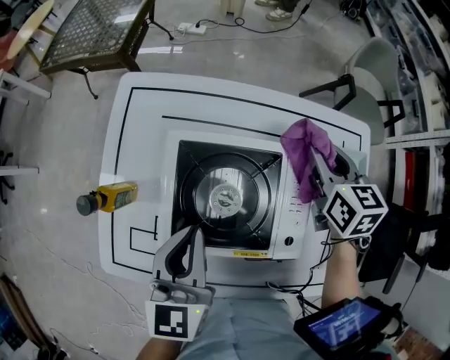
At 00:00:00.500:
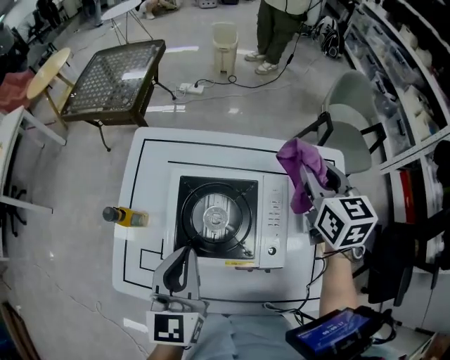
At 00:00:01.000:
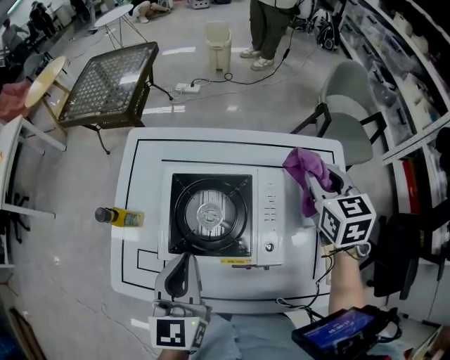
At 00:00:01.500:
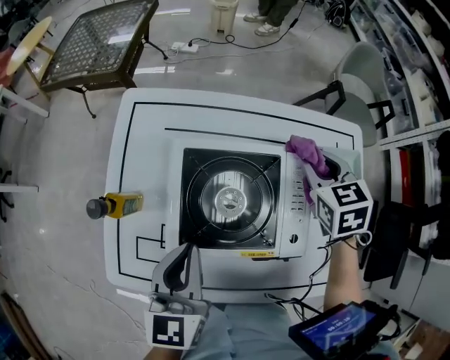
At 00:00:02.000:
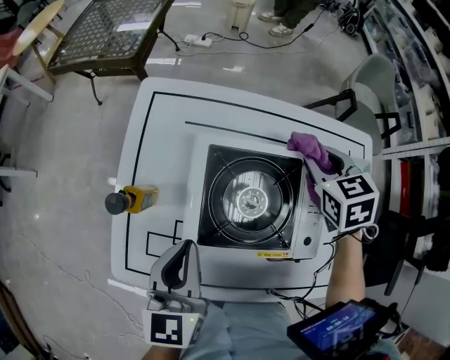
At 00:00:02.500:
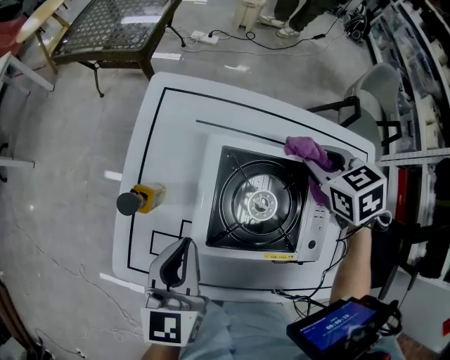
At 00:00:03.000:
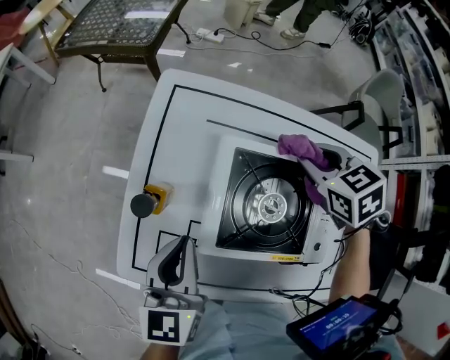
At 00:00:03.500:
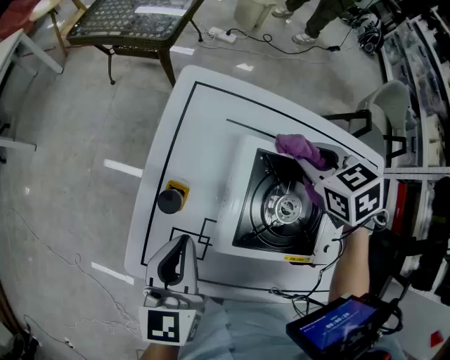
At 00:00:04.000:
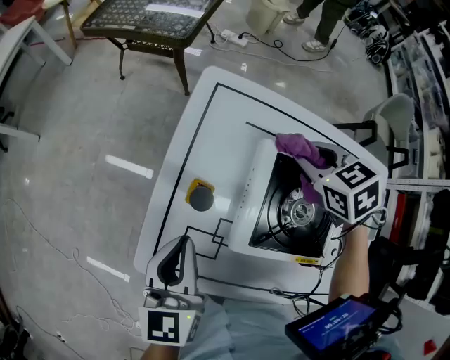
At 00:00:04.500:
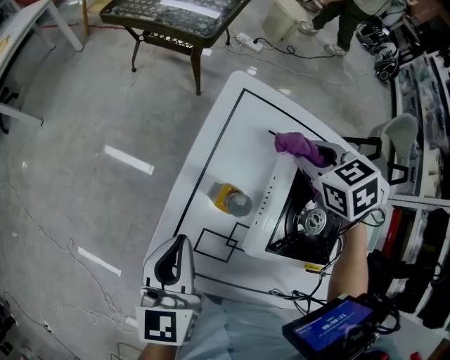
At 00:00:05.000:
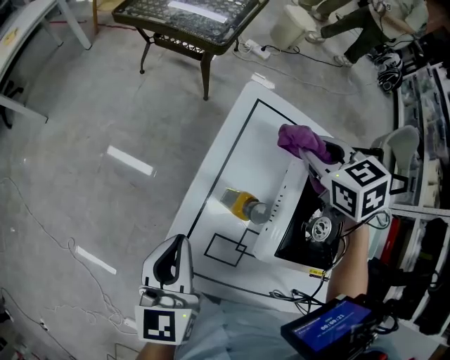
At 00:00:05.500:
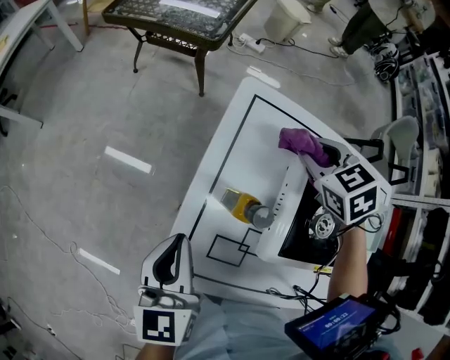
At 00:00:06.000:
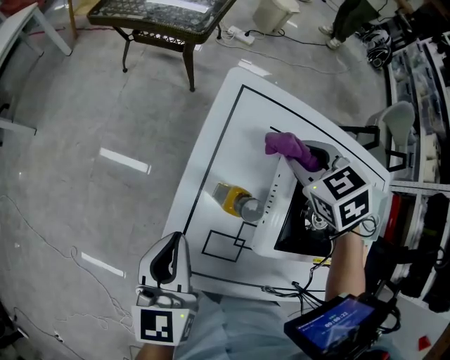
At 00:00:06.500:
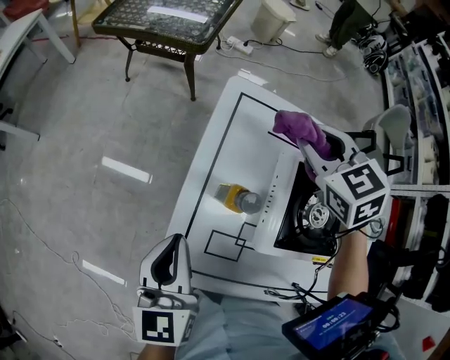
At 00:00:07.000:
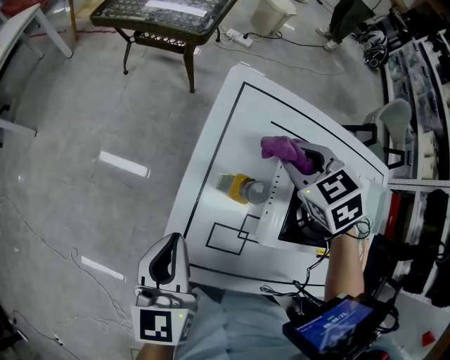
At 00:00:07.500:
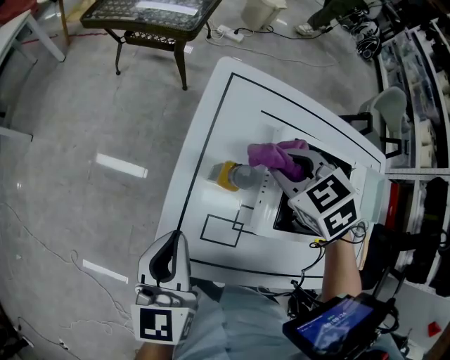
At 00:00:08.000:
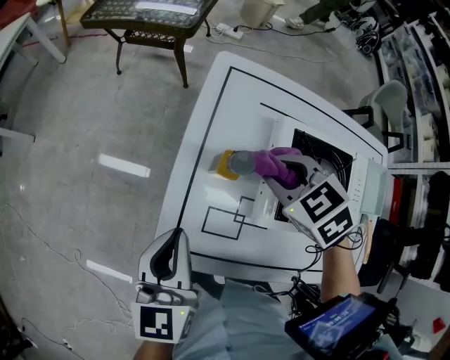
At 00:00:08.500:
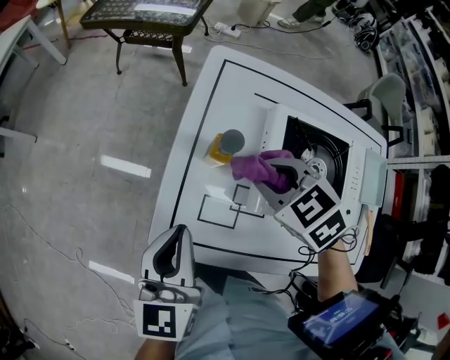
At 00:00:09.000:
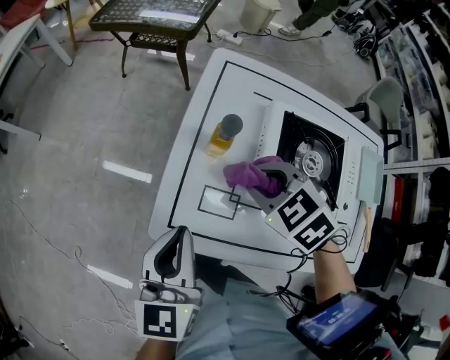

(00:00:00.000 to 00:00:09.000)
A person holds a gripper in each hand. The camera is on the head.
00:00:00.000 - 00:00:02.000: Both grippers move to the left, some 5 cm. The right gripper changes its angle by approximately 20 degrees.
00:00:02.000 - 00:00:04.500: Both grippers move to the left, some 25 cm. The right gripper turns by some 30 degrees.
00:00:04.500 - 00:00:07.000: The right gripper travels to the left by roughly 5 cm, and moves some 5 cm upward and comes back.
00:00:07.000 - 00:00:09.000: The right gripper is displaced backward and to the left by approximately 20 cm. Meanwhile the left gripper goes some 10 cm backward.

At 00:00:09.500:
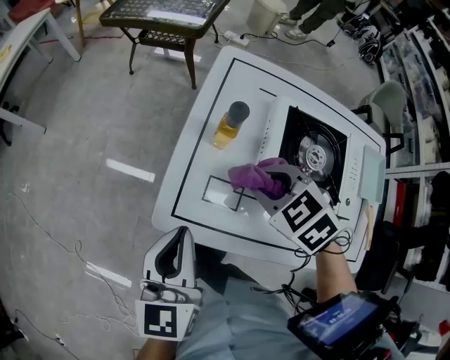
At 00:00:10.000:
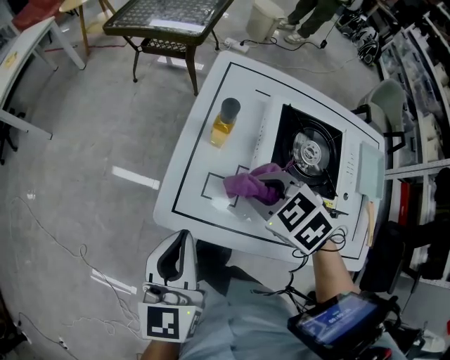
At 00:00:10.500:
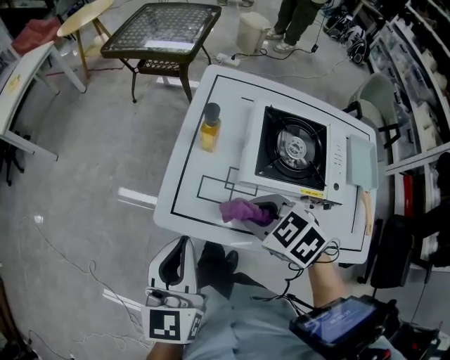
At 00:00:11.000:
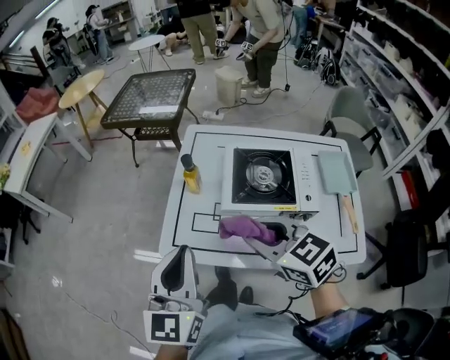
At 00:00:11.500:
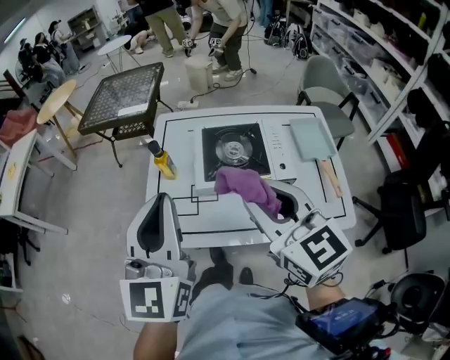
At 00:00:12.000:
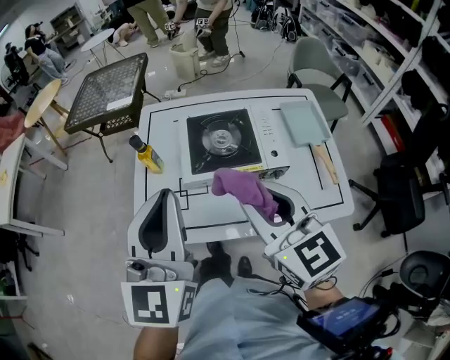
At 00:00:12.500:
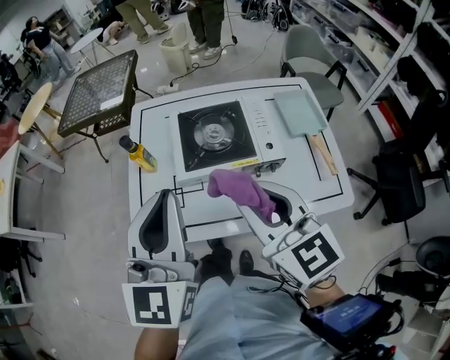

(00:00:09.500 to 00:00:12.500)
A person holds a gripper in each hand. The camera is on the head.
00:00:09.500 - 00:00:11.000: The left gripper moves upward and backward, approximately 20 cm; the right gripper goes some 25 cm backward and upward, and turns by approximately 30 degrees.
00:00:11.000 - 00:00:12.500: Both grippers move to the right, about 10 cm. The right gripper swivels approximately 30 degrees.

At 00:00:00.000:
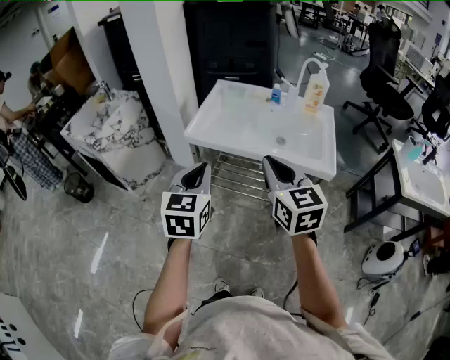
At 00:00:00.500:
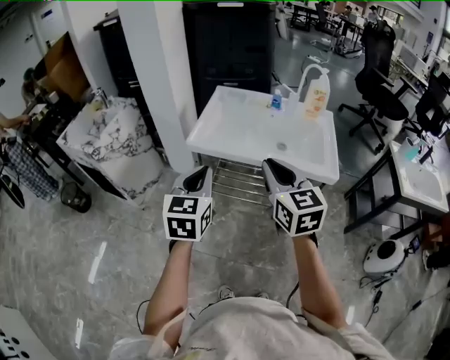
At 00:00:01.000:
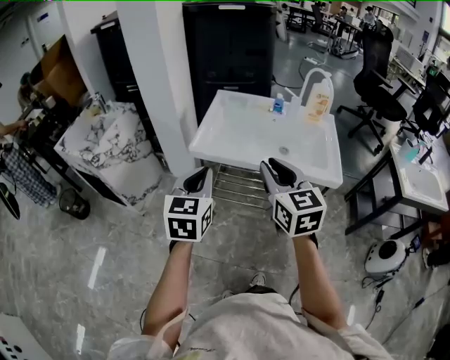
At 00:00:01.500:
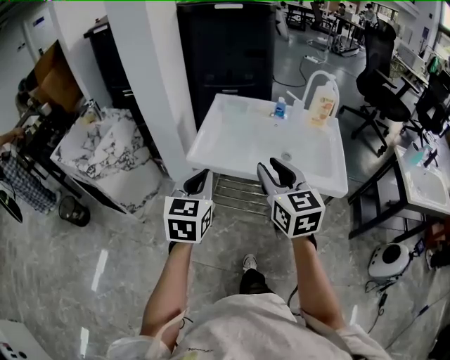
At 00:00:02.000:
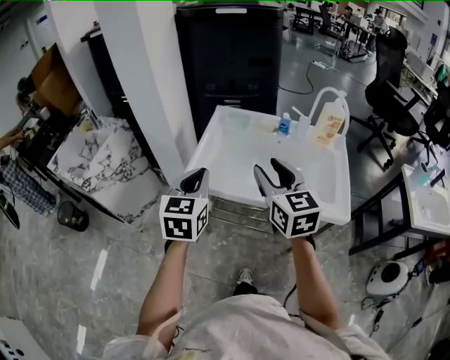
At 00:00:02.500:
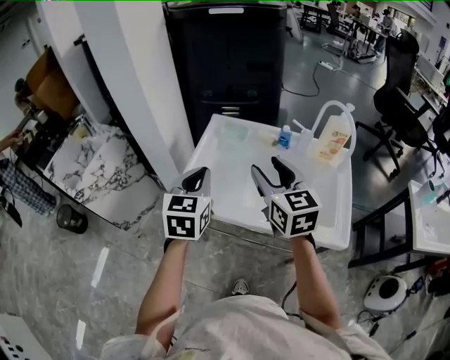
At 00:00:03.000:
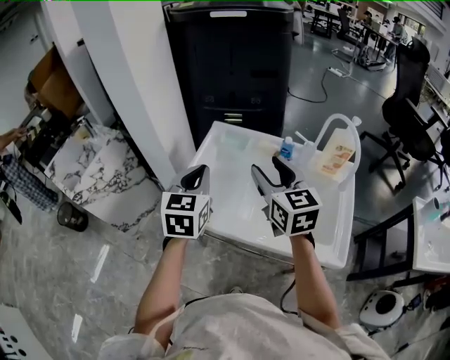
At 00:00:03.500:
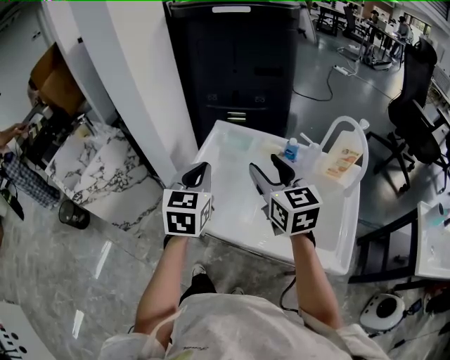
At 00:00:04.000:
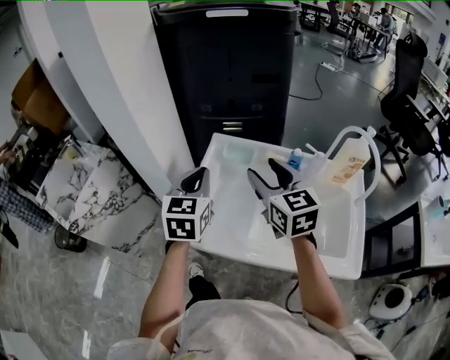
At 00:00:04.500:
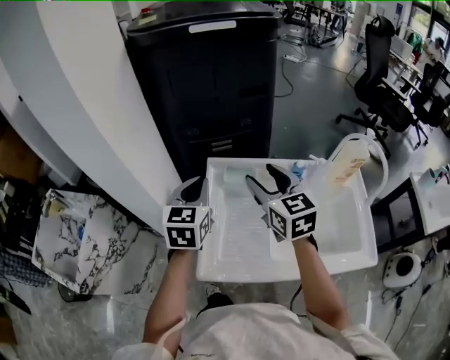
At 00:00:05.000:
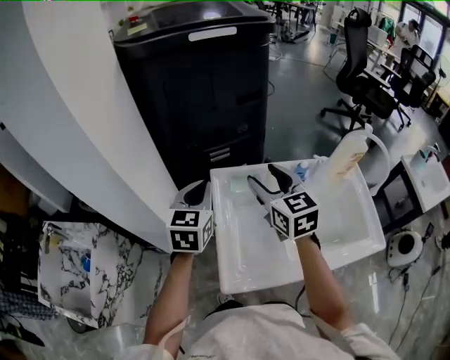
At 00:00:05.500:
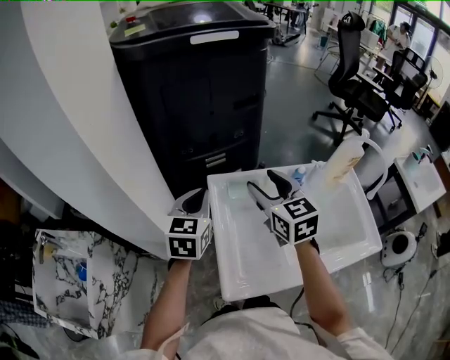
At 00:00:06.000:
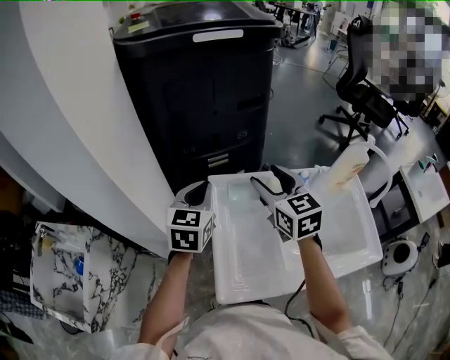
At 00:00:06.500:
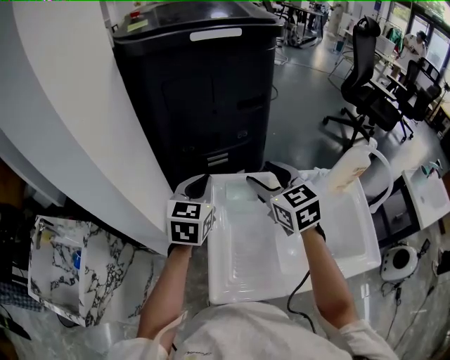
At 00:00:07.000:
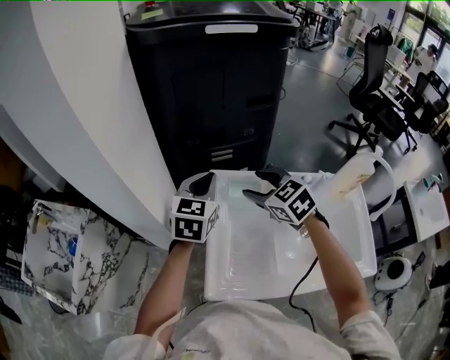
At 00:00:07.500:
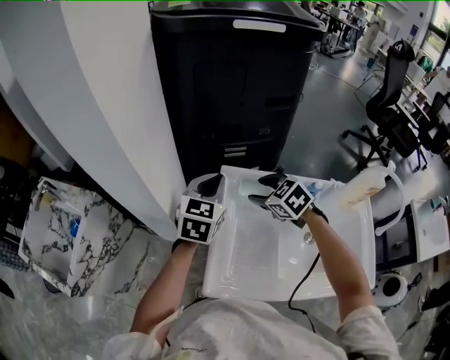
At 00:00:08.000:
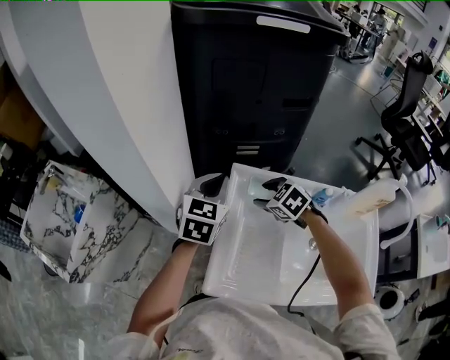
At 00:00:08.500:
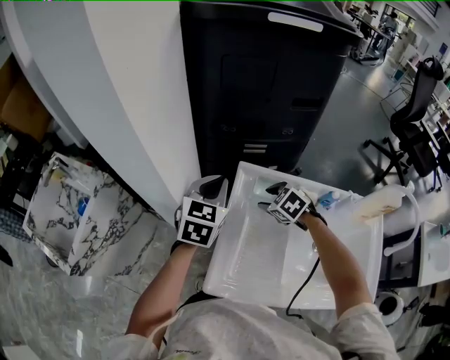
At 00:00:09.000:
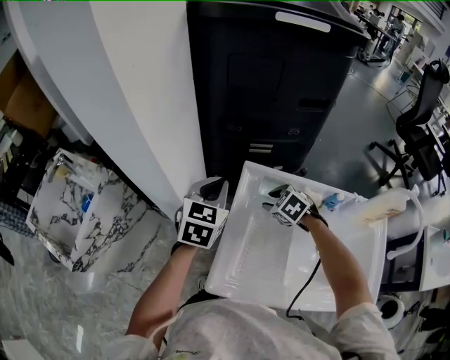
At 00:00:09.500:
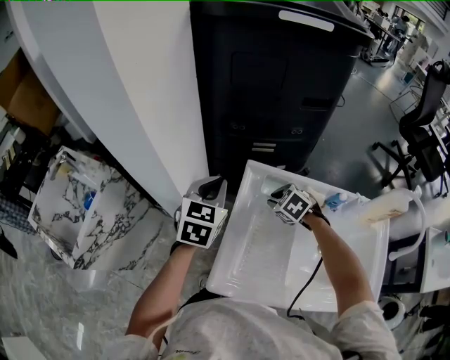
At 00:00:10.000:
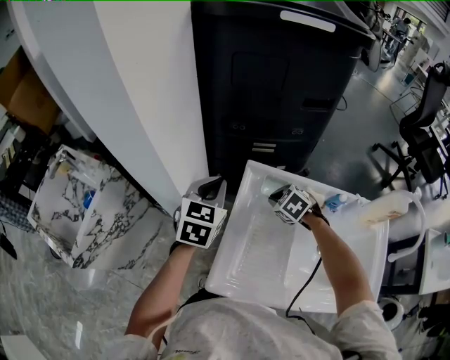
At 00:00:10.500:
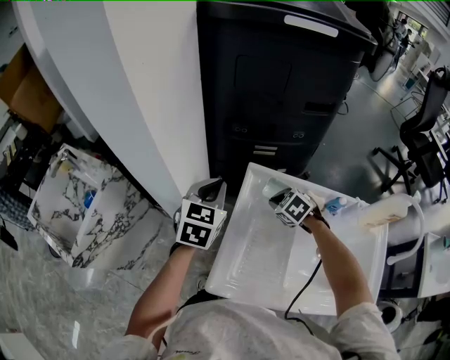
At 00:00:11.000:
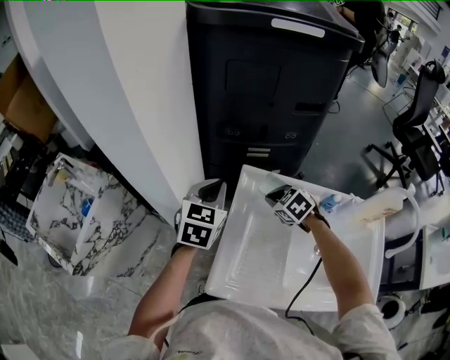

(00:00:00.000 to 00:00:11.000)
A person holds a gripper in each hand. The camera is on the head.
00:00:00.000 - 00:00:02.000: Both grippers move forward, approximately 20 cm. The right gripper opens its fingers.
00:00:02.000 - 00:00:03.500: The left gripper shifts about 15 cm forward and to the right; the right gripper shifts approximately 15 cm forward.
00:00:03.500 - 00:00:05.500: The left gripper moves approximately 25 cm, and changes its angle by approximately 30 degrees; the right gripper moves roughly 20 cm, and turns by approximately 30 degrees.
00:00:05.500 - 00:00:07.500: The right gripper heads downward, covering approximately 15 cm, and tips its fingers downward by approximately 30 degrees.
00:00:07.500 - 00:00:09.000: The left gripper shifts about 5 cm to the left. The right gripper shifts some 10 cm downward.
00:00:09.000 - 00:00:11.000: The right gripper closes.

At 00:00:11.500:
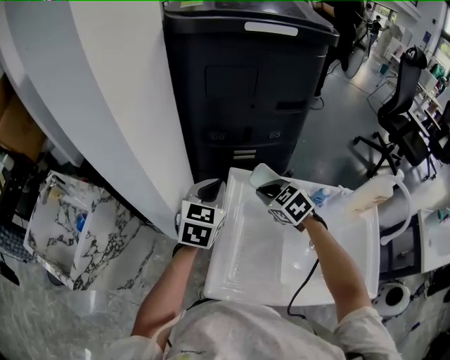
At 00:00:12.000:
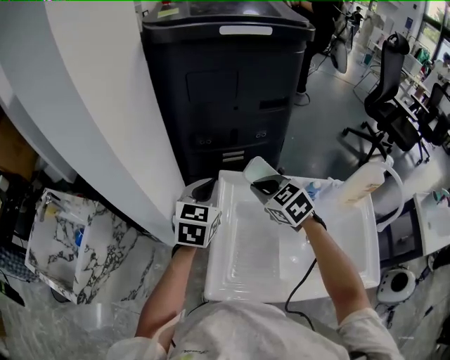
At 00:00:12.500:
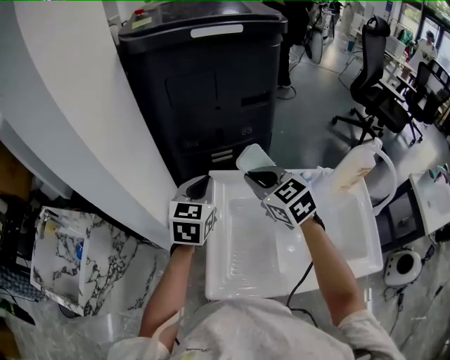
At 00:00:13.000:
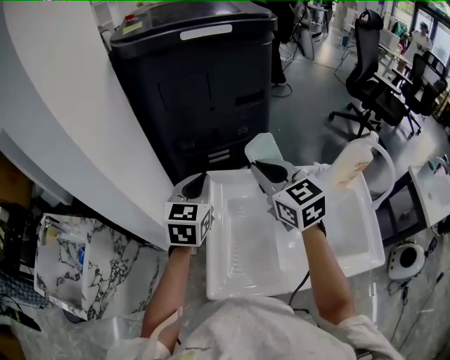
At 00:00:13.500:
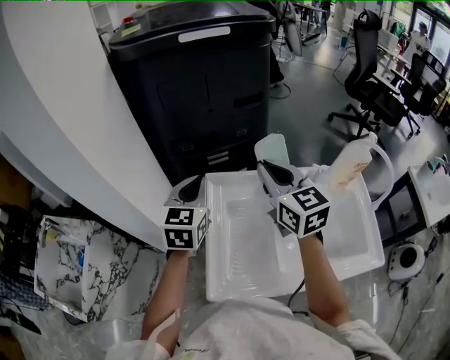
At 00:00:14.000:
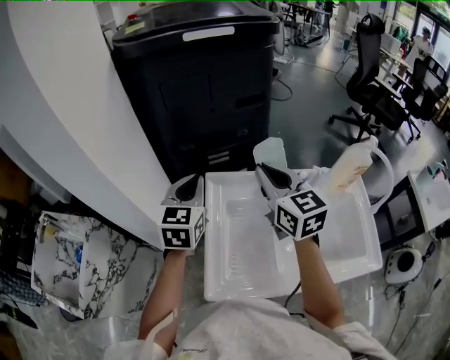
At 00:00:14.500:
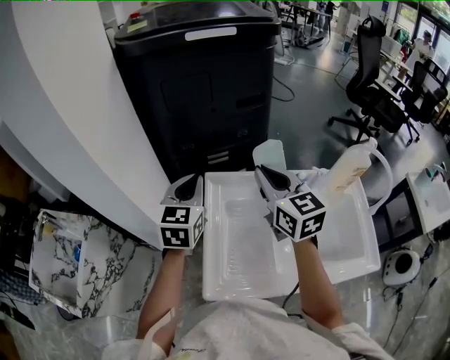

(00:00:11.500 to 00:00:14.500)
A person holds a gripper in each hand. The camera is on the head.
00:00:11.500 - 00:00:13.000: The right gripper moves upward, about 15 cm, and tilts its fingers some 30 degrees upward. The left gripper shifts by roughly 5 cm.
00:00:13.000 - 00:00:14.500: There are only small adjustments of the grippers.
